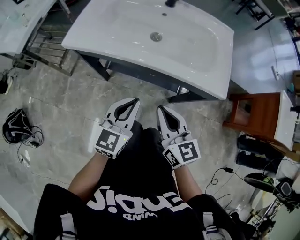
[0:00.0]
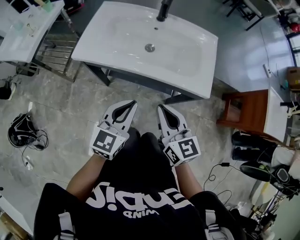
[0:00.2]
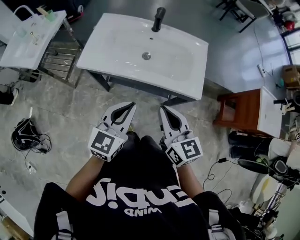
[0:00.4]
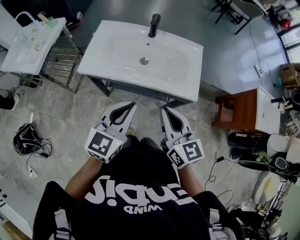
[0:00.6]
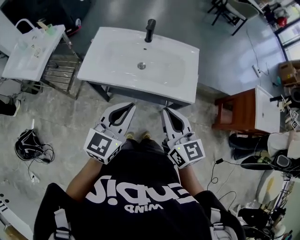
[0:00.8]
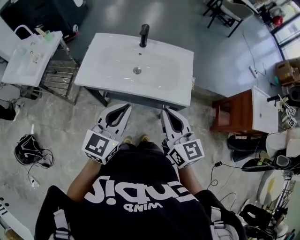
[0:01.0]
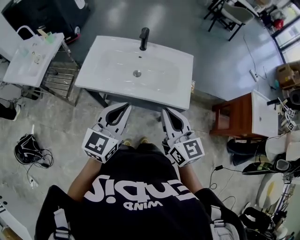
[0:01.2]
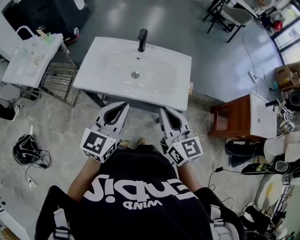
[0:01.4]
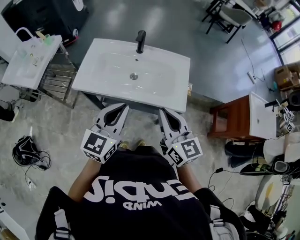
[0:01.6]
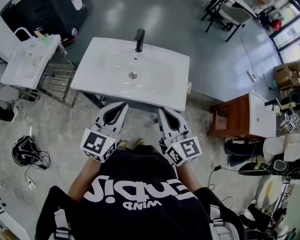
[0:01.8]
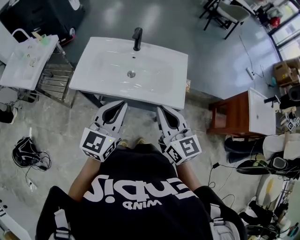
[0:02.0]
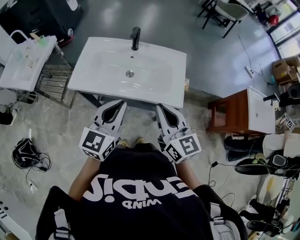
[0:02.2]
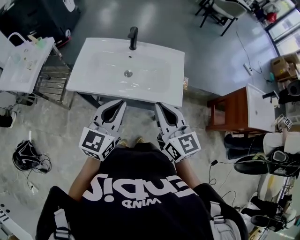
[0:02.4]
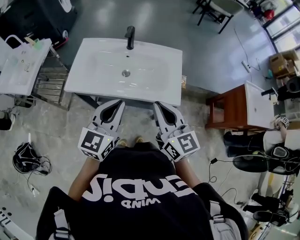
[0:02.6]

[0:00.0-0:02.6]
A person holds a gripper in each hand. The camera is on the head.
0.0 to 1.2 s: Both grippers move upward, about 25 cm.
1.2 to 2.6 s: The grippers make only small movements.

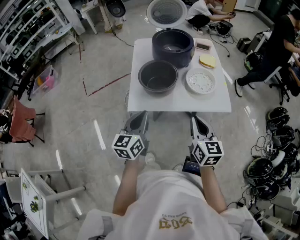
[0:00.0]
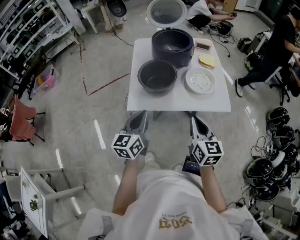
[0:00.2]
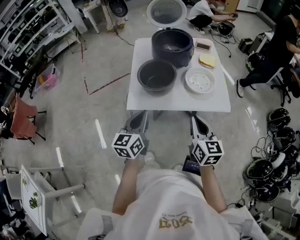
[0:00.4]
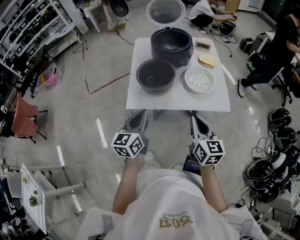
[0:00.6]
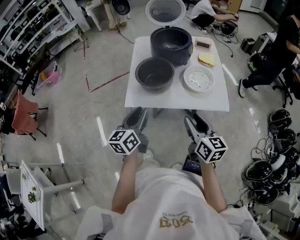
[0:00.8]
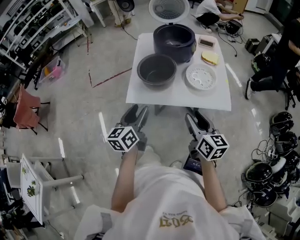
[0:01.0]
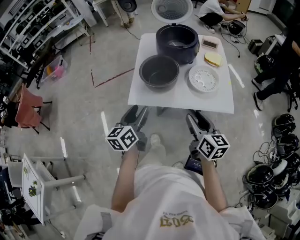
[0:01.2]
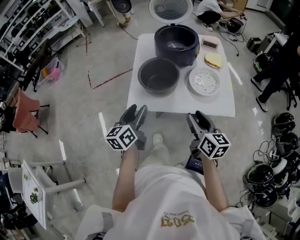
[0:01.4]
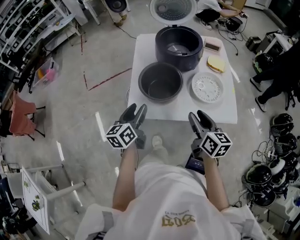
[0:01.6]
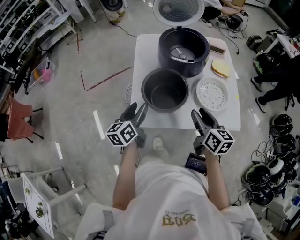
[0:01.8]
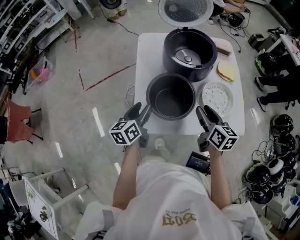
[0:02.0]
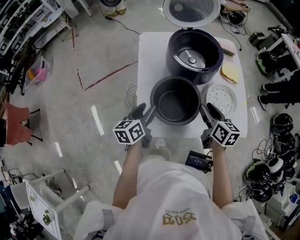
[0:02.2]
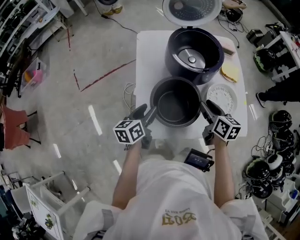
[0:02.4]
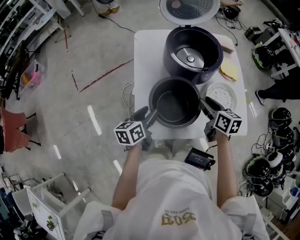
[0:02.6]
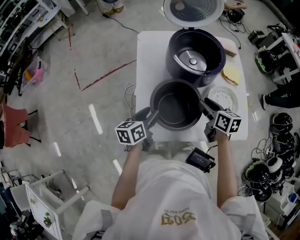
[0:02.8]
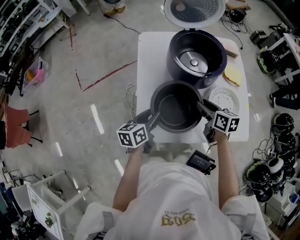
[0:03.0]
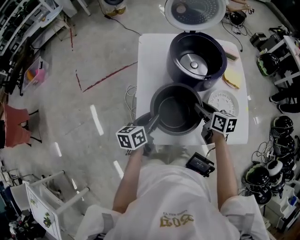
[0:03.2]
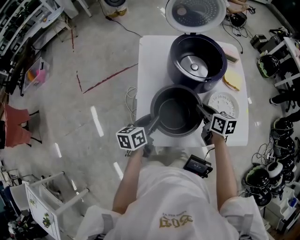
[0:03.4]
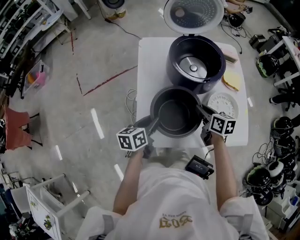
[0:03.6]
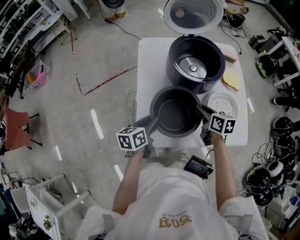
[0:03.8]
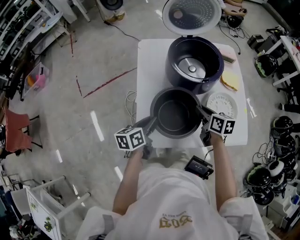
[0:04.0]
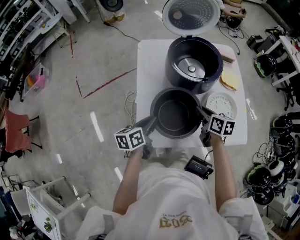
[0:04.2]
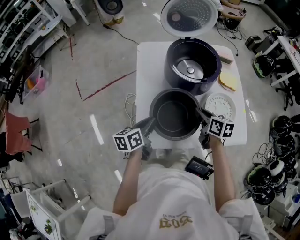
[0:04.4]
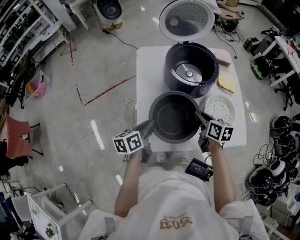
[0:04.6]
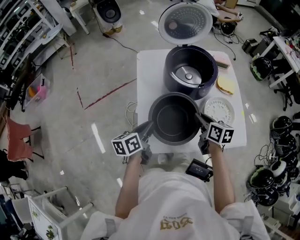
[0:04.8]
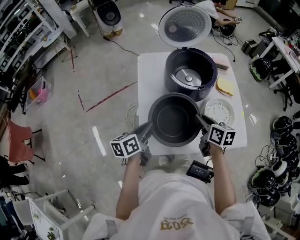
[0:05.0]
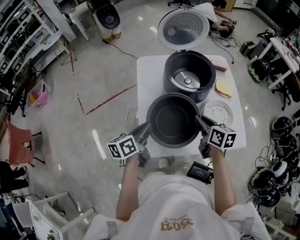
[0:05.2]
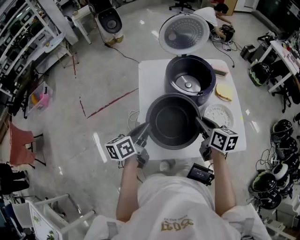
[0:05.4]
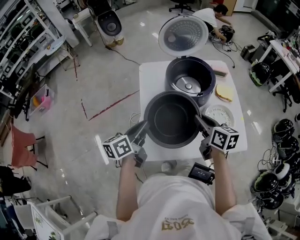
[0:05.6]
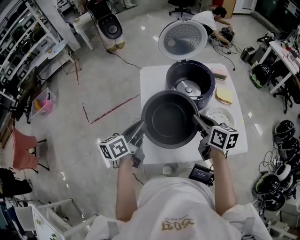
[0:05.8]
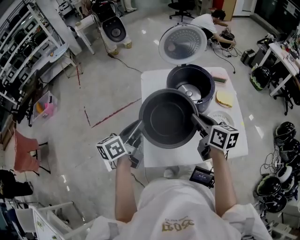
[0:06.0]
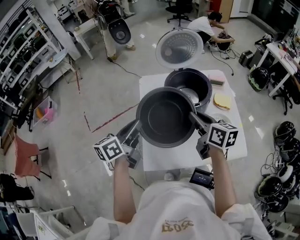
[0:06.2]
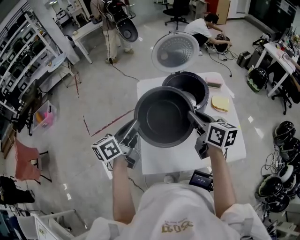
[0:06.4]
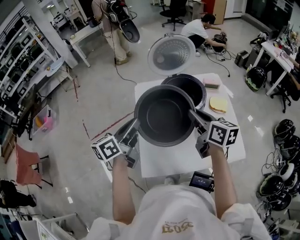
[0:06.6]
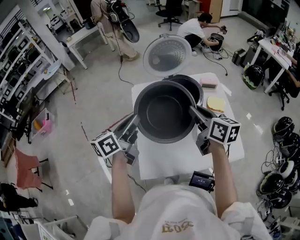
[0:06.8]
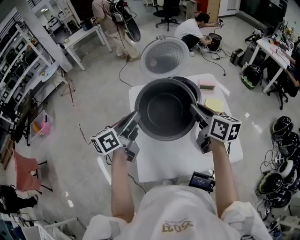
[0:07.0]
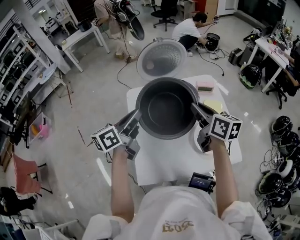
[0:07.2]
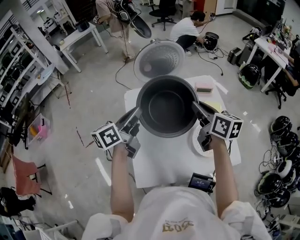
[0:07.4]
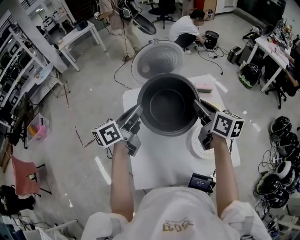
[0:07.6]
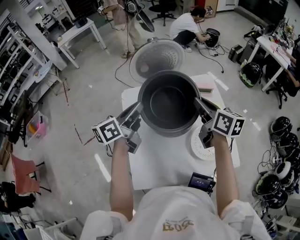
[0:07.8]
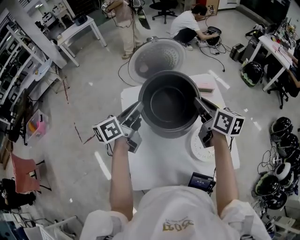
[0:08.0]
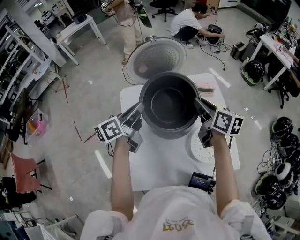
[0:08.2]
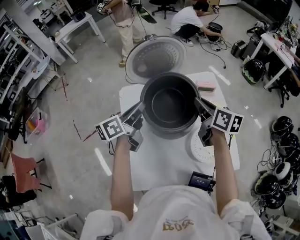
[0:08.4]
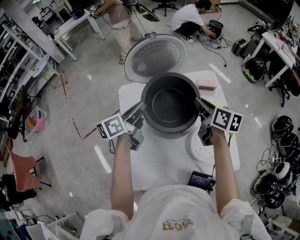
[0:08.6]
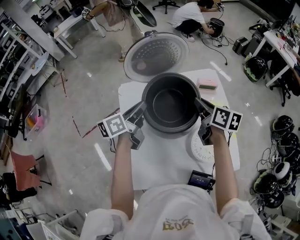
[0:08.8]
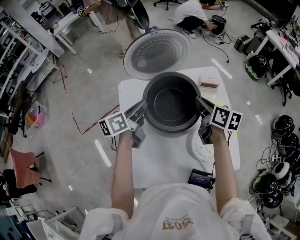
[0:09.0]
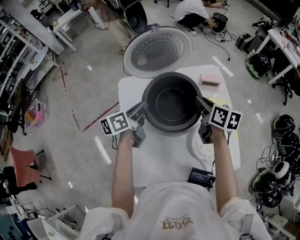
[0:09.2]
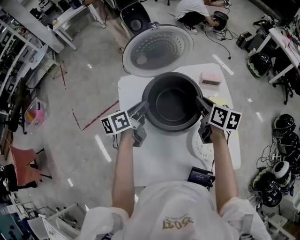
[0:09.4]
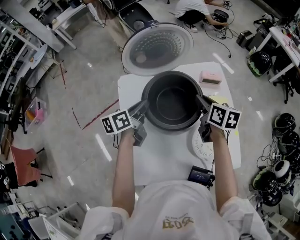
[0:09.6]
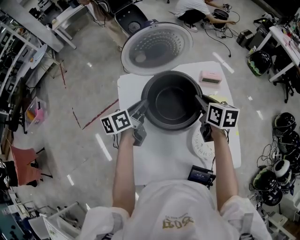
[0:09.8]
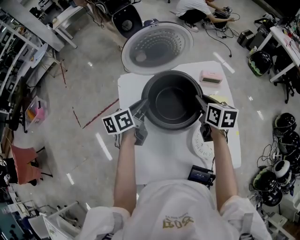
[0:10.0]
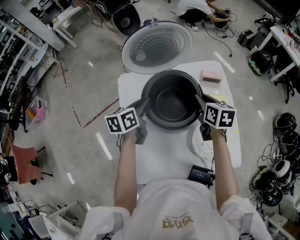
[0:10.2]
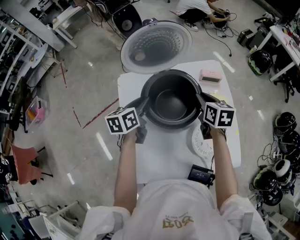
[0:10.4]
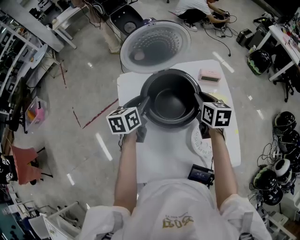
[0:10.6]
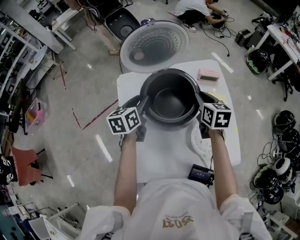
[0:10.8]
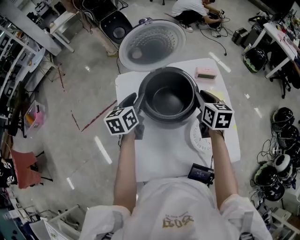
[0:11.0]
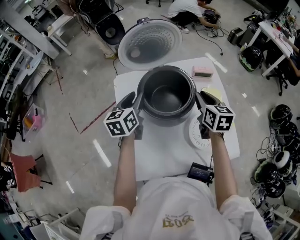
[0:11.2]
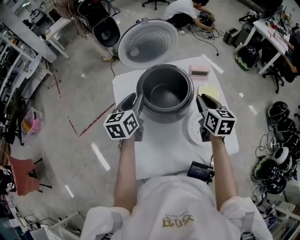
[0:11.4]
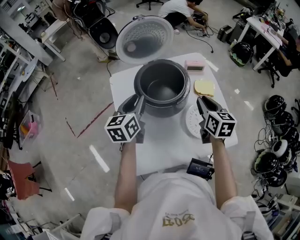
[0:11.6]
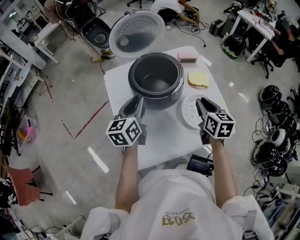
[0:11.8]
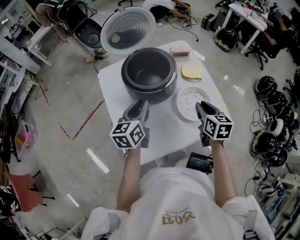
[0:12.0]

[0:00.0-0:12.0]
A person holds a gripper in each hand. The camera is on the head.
0.0 to 1.6 s: The two grippers go some 10 cm forward. The right gripper opens its fingers; the left gripper opens its fingers.
1.6 to 3.0 s: The two grippers go about 20 cm forward and downward. The left gripper changes its angle by approximately 20 degrees.
3.0 to 4.4 s: The left gripper closes up; the right gripper closes up.
4.4 to 6.0 s: The grippers both shift upward by roughly 15 cm.
6.0 to 7.6 s: The right gripper heads forward, to the right and upward, covering approximately 20 cm. Meanwhile the left gripper goes some 20 cm forward and to the right.
7.6 to 9.0 s: Both grippers move downward and forward, approximately 15 cm.
9.0 to 10.4 s: The left gripper turns by about 20 degrees.
10.4 to 12.0 s: Both grippers move backward, some 20 cm.

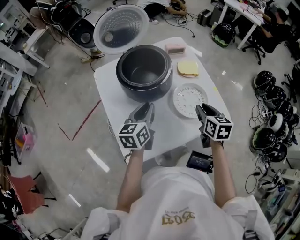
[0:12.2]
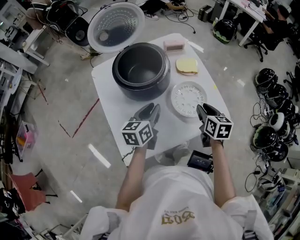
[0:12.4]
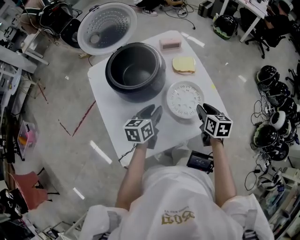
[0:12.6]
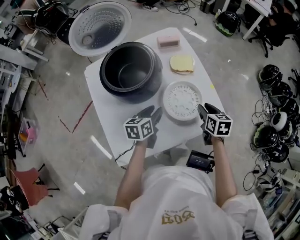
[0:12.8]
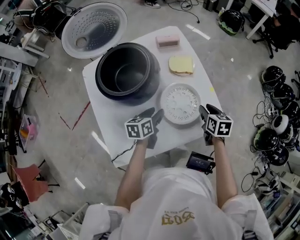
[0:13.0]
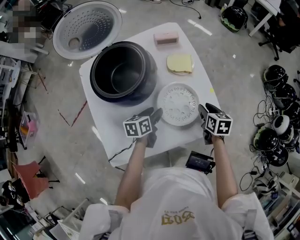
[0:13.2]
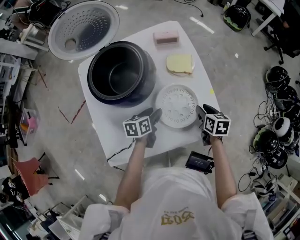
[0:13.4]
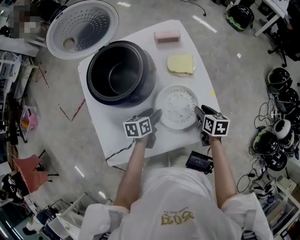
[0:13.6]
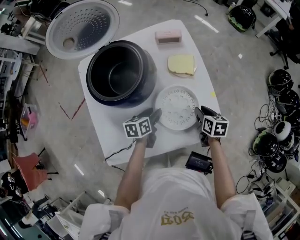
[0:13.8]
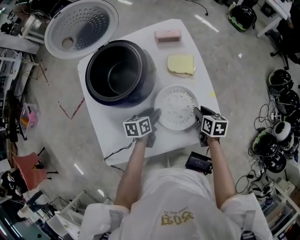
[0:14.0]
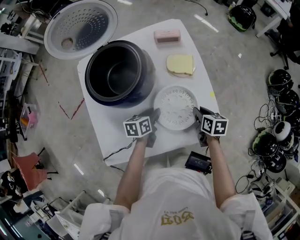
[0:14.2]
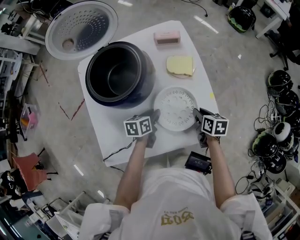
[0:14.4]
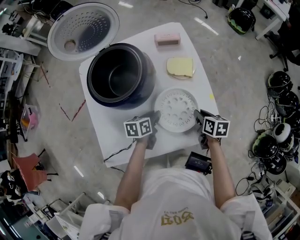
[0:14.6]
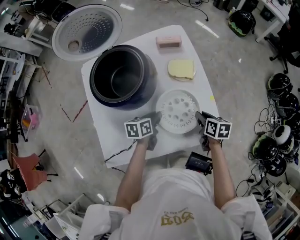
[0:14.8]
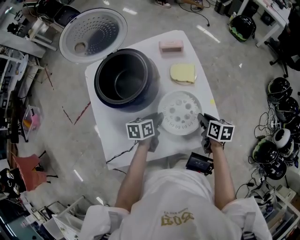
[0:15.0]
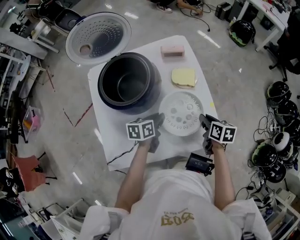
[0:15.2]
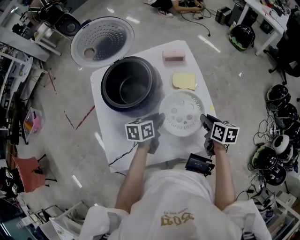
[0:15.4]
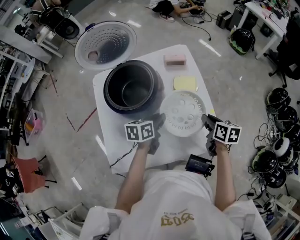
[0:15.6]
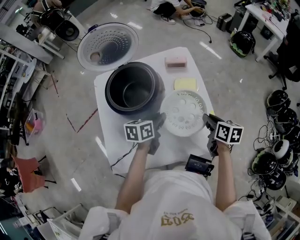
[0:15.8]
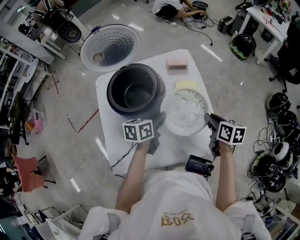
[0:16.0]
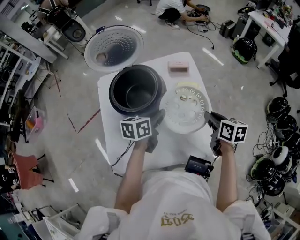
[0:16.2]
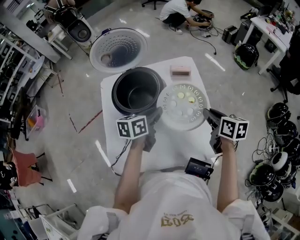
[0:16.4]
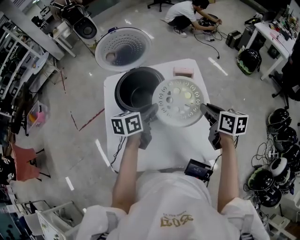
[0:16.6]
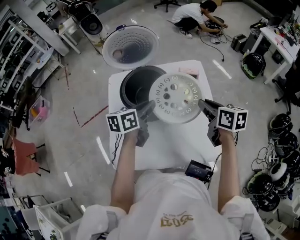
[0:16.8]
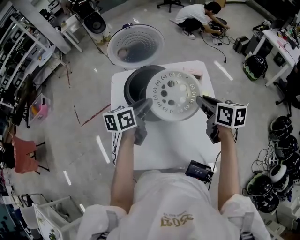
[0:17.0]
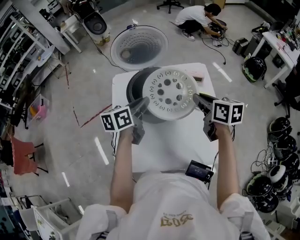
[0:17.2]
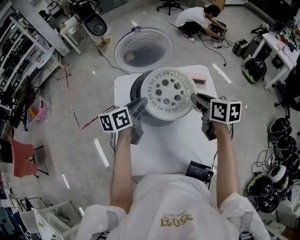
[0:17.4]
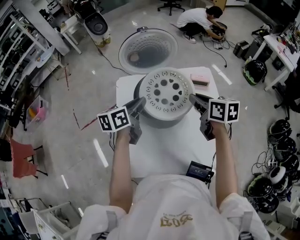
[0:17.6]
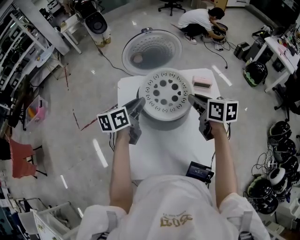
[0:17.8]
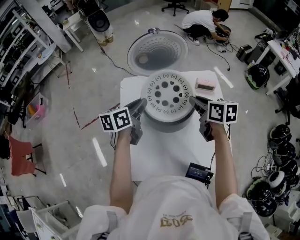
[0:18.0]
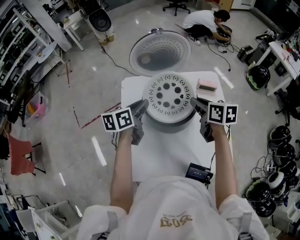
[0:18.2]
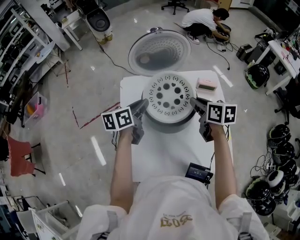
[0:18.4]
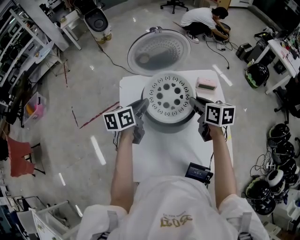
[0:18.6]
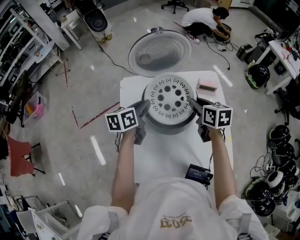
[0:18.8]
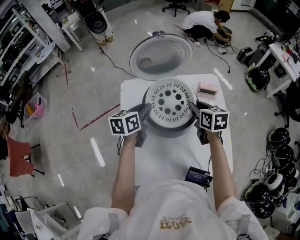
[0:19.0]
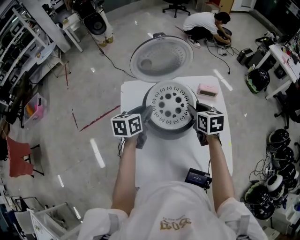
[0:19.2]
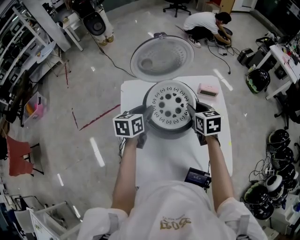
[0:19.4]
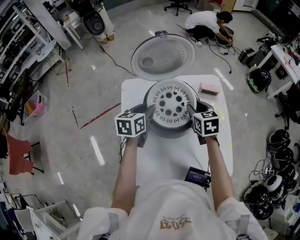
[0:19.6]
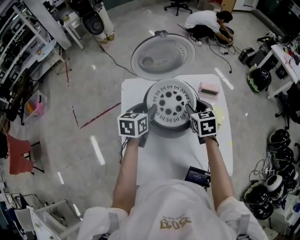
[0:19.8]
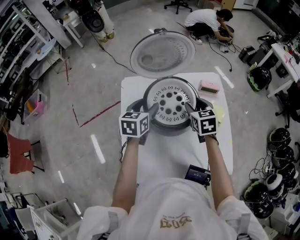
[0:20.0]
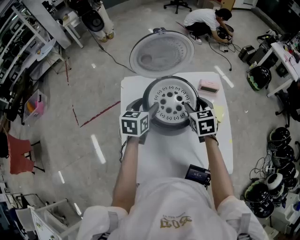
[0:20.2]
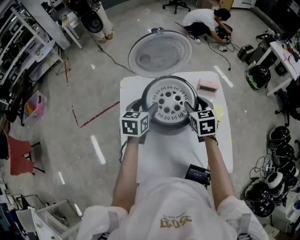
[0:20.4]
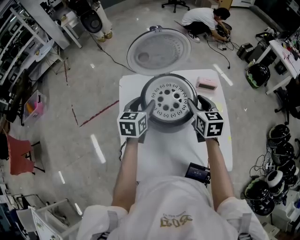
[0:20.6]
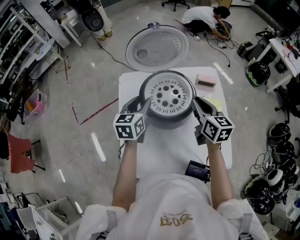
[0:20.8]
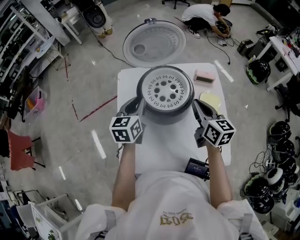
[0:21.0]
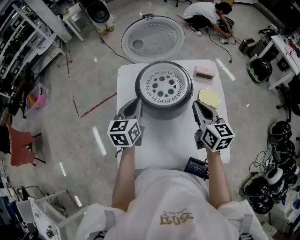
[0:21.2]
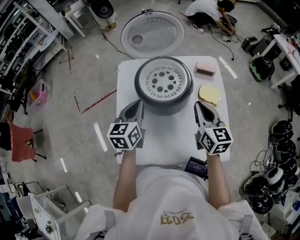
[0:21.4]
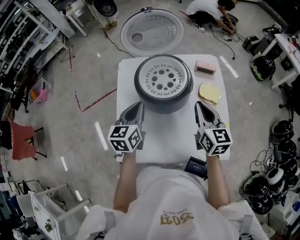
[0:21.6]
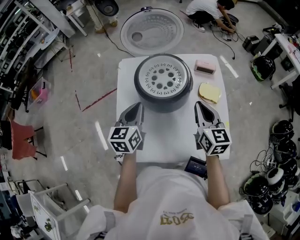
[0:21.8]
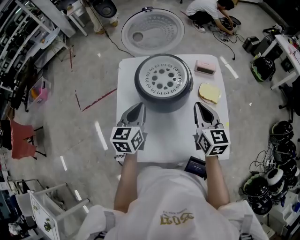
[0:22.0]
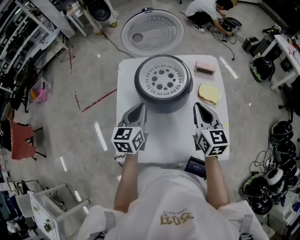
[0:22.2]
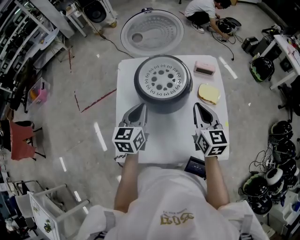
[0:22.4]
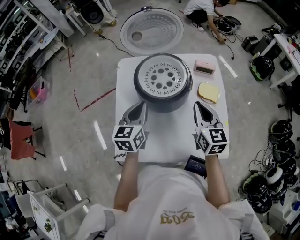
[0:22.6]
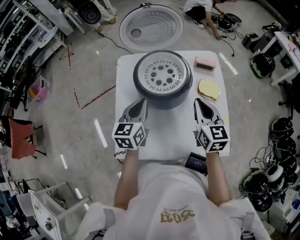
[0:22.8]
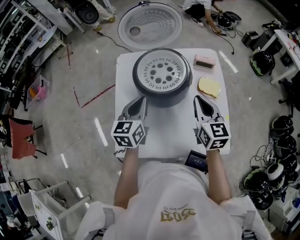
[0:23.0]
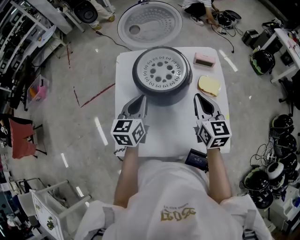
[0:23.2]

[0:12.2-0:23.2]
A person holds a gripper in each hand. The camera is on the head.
12.2 to 13.8 s: The right gripper moves downward, to the right and forward, some 20 cm, and changes its angle by about 20 degrees. Meanwhile the left gripper travels downward and to the right by roughly 25 cm, swivels approximately 30 degrees, and opens.
13.8 to 15.4 s: The two grippers go roughly 10 cm upward. The left gripper closes up.
15.4 to 17.0 s: The right gripper moves upward, to the left and forward, about 25 cm, and rotates roughly 30 degrees. Meanwhile the left gripper is displaced upward and to the left by some 20 cm, and turns by approximately 20 degrees.
17.0 to 18.4 s: Both grippers move to the left and forward, approximately 15 cm.
18.4 to 20.0 s: The left gripper changes its angle by about 30 degrees, and opens up. The right gripper ends up approximately 5 cm from where it was, swivels approximately 30 degrees, and opens its fingers.
20.0 to 21.6 s: The left gripper goes some 10 cm backward, and closes its fingers, while the right gripper shifts approximately 15 cm backward, upward and to the right, swivels roughly 30 degrees, and closes its fingers.
21.6 to 23.2 s: There are only small adjustments of the grippers.
